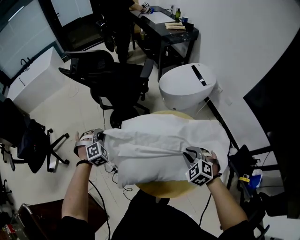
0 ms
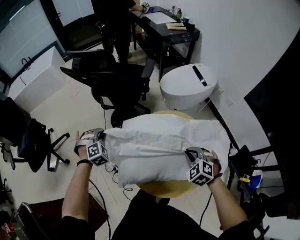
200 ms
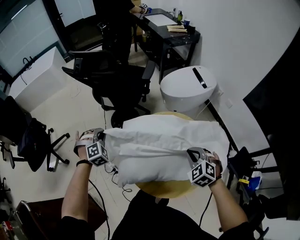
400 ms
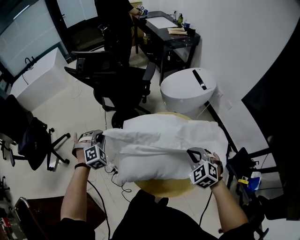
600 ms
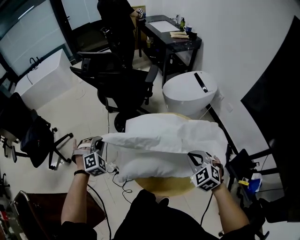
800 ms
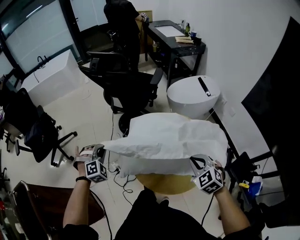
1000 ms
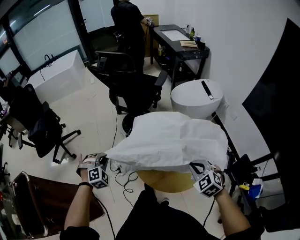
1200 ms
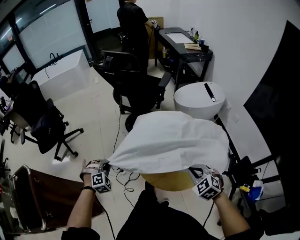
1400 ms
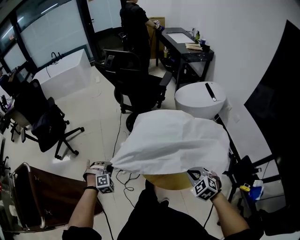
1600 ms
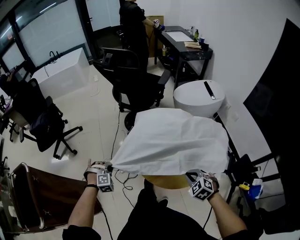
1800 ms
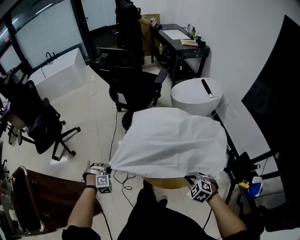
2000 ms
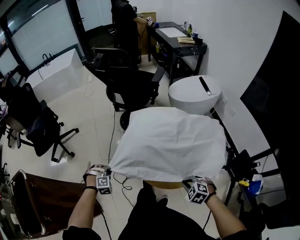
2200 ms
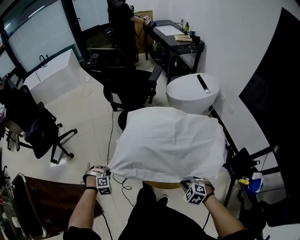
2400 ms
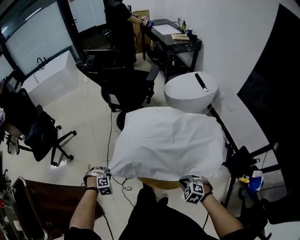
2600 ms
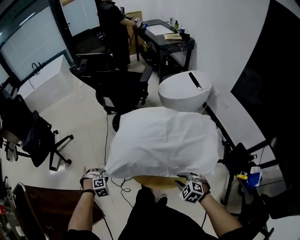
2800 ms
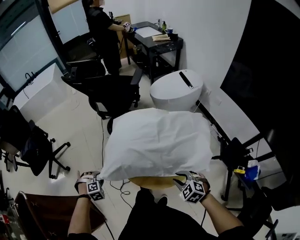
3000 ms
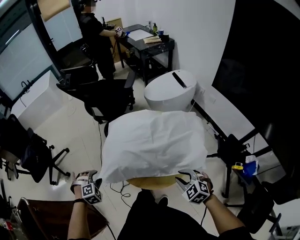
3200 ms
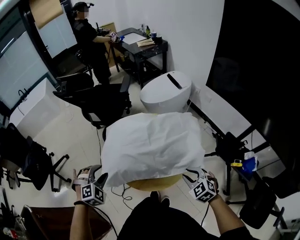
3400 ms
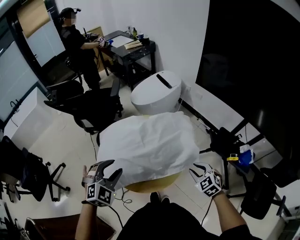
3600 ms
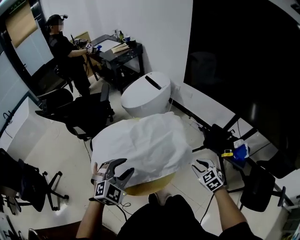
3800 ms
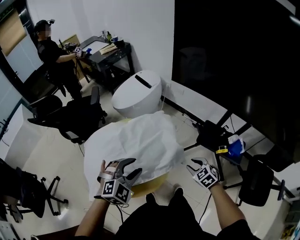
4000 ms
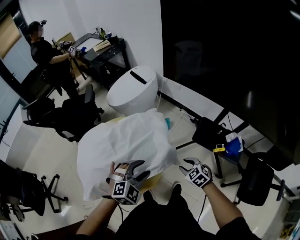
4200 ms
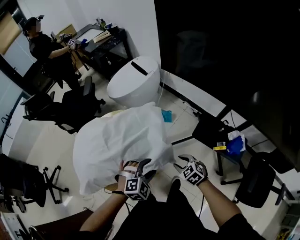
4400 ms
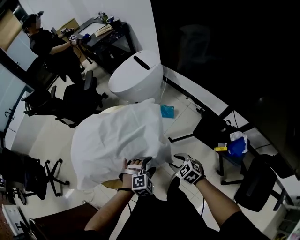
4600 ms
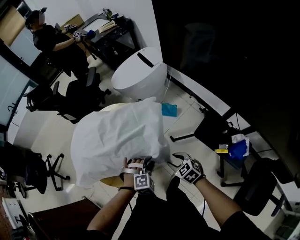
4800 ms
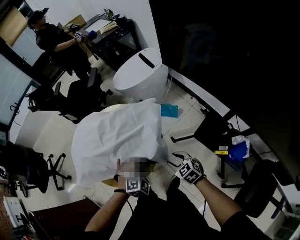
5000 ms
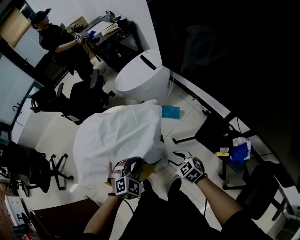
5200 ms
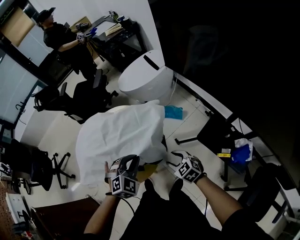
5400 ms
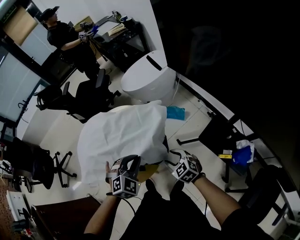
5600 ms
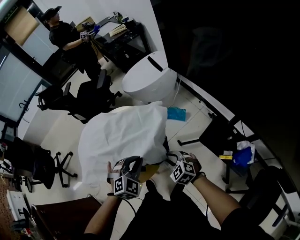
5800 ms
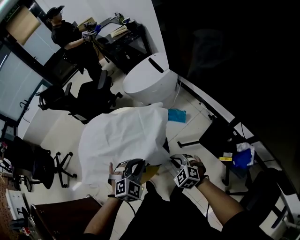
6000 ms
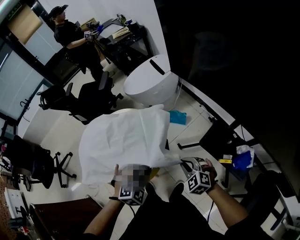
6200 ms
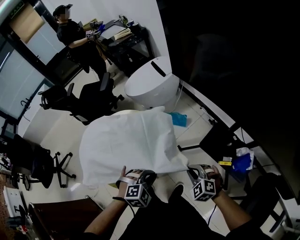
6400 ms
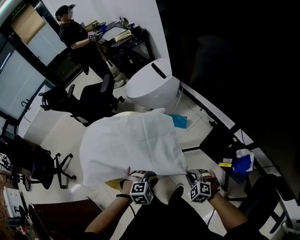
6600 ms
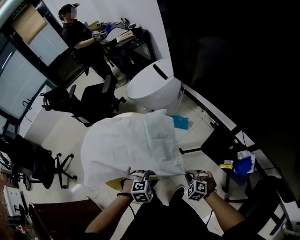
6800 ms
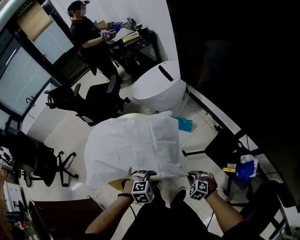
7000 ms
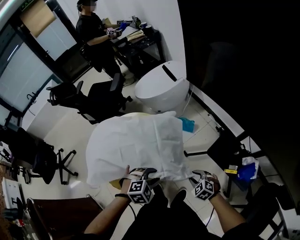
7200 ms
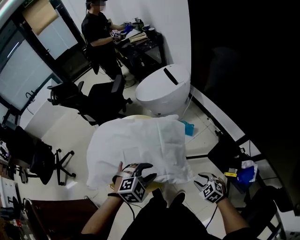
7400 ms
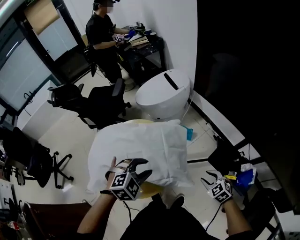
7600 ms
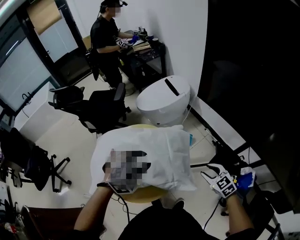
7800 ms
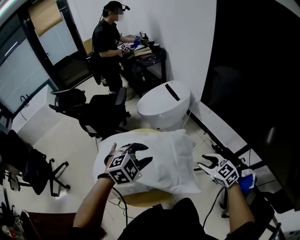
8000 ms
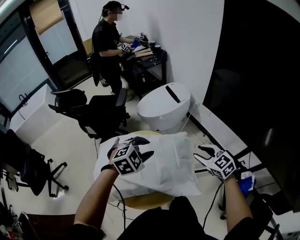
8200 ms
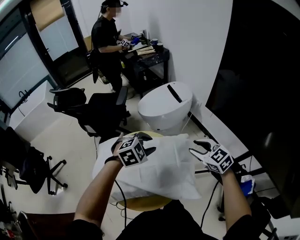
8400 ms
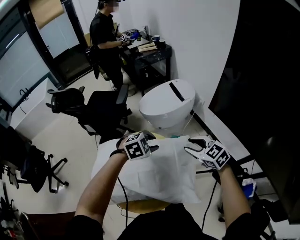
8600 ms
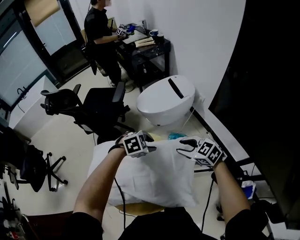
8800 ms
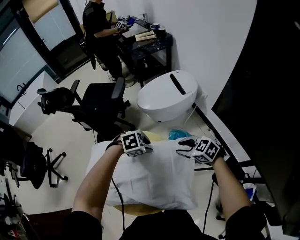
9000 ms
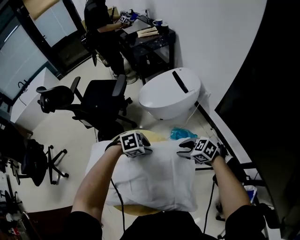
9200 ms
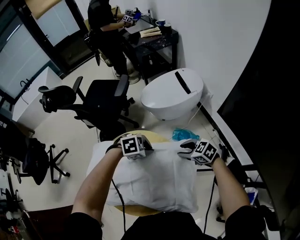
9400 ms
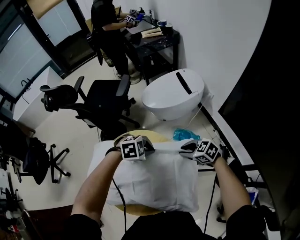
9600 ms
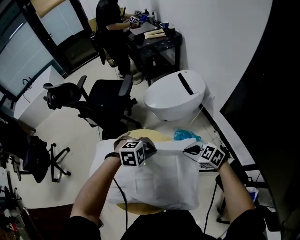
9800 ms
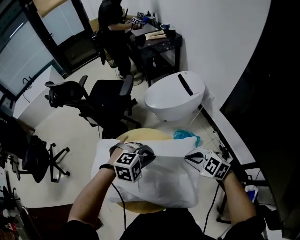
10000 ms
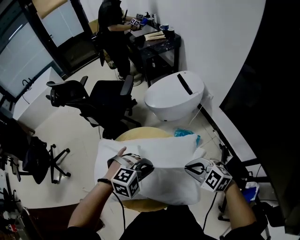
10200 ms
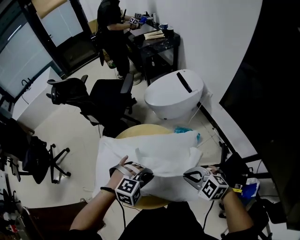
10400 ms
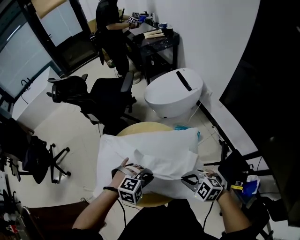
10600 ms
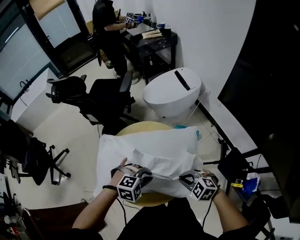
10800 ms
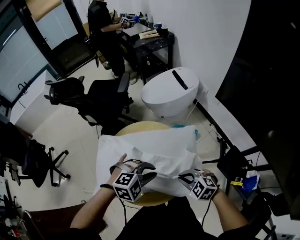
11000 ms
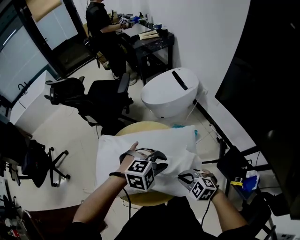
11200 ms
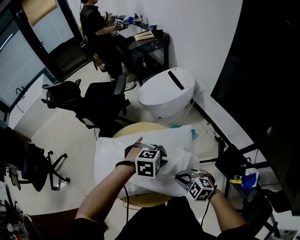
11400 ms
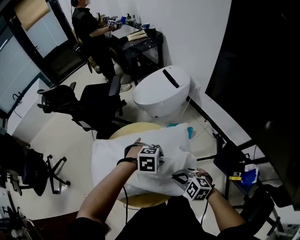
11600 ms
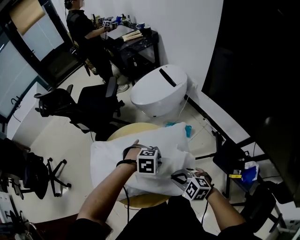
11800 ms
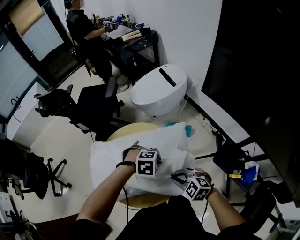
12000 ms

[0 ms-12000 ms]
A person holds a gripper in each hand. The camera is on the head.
0 ms to 1600 ms: The left gripper moves backward, approximately 30 cm; the right gripper heads backward, covering about 15 cm.
1600 ms to 3000 ms: The left gripper opens its fingers, while the right gripper opens.
3000 ms to 4400 ms: The right gripper ends up approximately 25 cm from where it was, and swivels about 30 degrees; the left gripper shifts by roughly 60 cm, and swivels approximately 40 degrees.
4400 ms to 6000 ms: The right gripper shifts by roughly 5 cm, turns by approximately 20 degrees, and closes. The left gripper shifts approximately 5 cm upward, rotates roughly 20 degrees, and closes.
6000 ms to 7600 ms: The left gripper goes approximately 5 cm to the left, moves some 10 cm downward and comes back, and opens. The right gripper goes approximately 10 cm to the right, moves roughly 10 cm downward and comes back, and opens up.
7600 ms to 9000 ms: The left gripper moves some 25 cm, and changes its angle by roughly 30 degrees; the right gripper moves approximately 15 cm upward and comes back, and rotates about 30 degrees.
9000 ms to 10400 ms: The left gripper ends up about 20 cm from where it was, swivels some 30 degrees, and closes its fingers. The right gripper shifts by roughly 20 cm, changes its angle by some 20 degrees, and closes up.
10400 ms to 12000 ms: The left gripper ends up about 10 cm from where it was, and swivels approximately 20 degrees. Meanwhile the right gripper heads downward, covering some 5 cm.

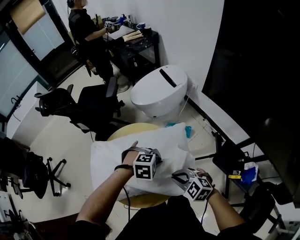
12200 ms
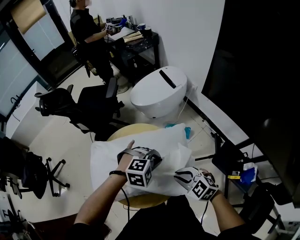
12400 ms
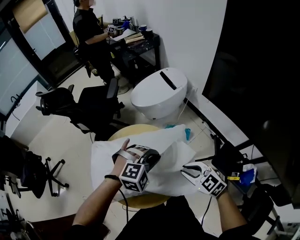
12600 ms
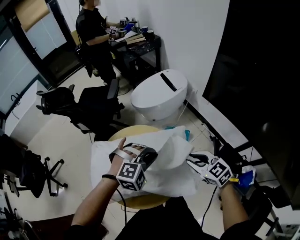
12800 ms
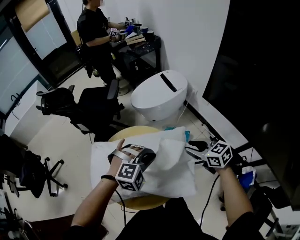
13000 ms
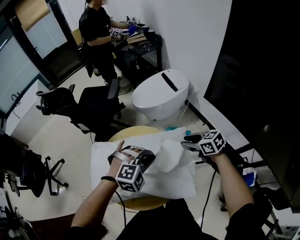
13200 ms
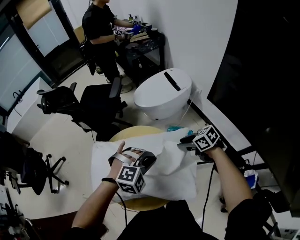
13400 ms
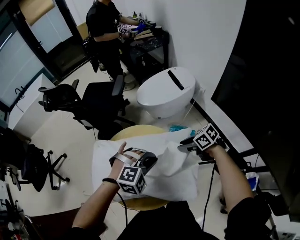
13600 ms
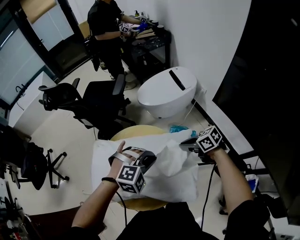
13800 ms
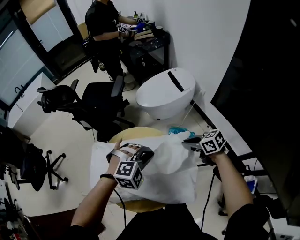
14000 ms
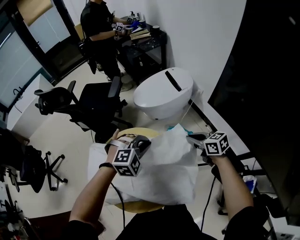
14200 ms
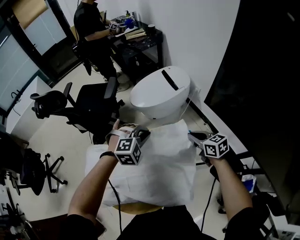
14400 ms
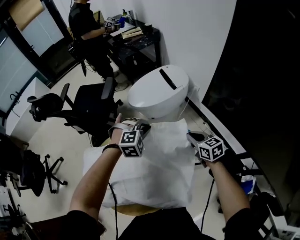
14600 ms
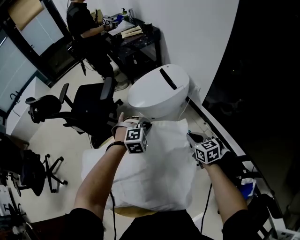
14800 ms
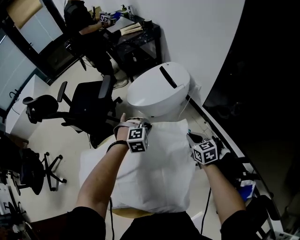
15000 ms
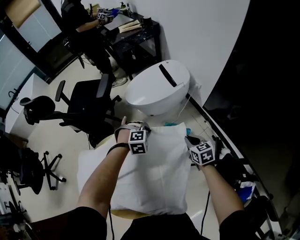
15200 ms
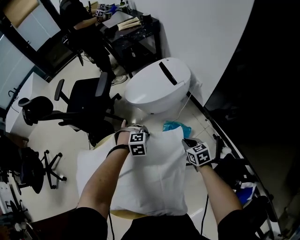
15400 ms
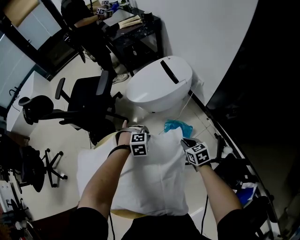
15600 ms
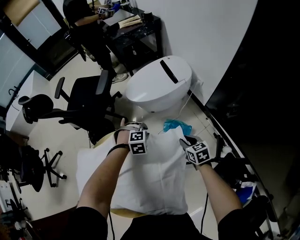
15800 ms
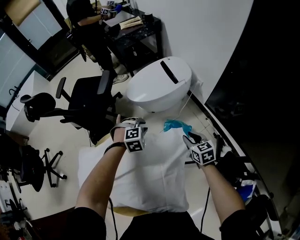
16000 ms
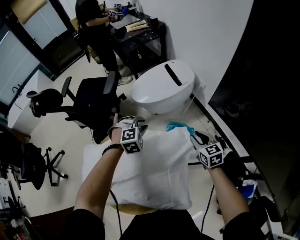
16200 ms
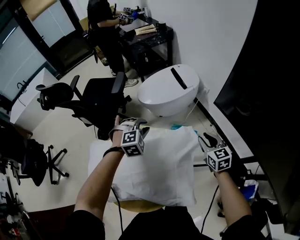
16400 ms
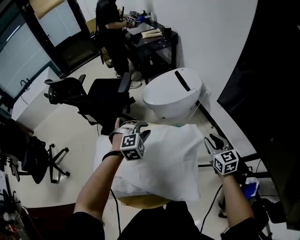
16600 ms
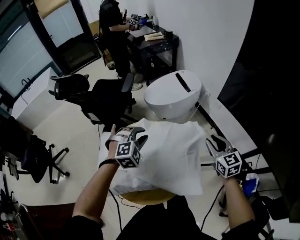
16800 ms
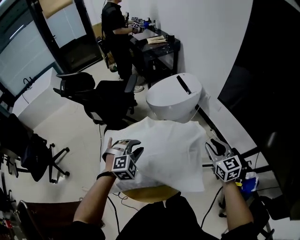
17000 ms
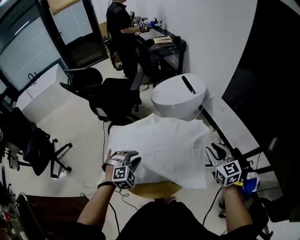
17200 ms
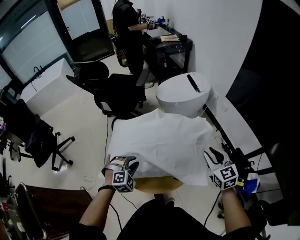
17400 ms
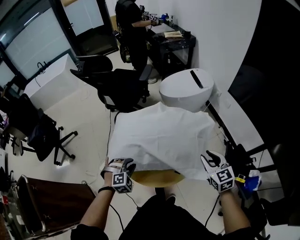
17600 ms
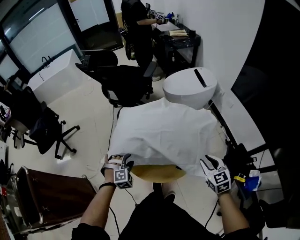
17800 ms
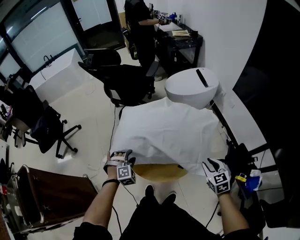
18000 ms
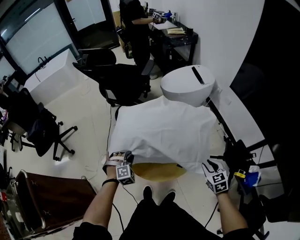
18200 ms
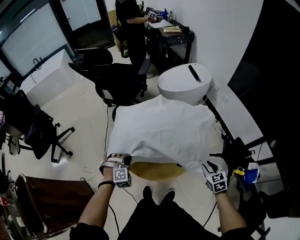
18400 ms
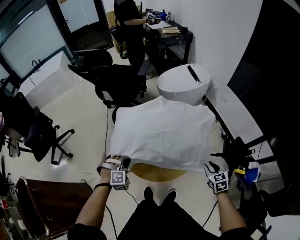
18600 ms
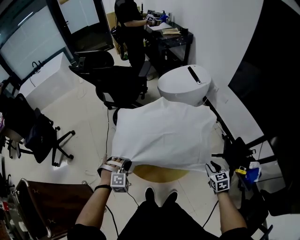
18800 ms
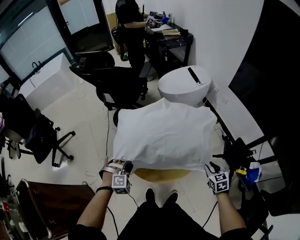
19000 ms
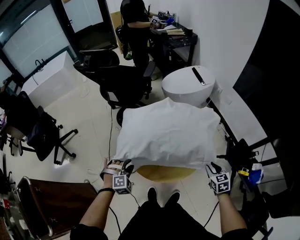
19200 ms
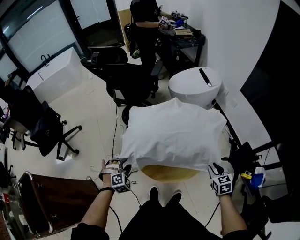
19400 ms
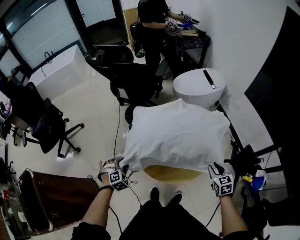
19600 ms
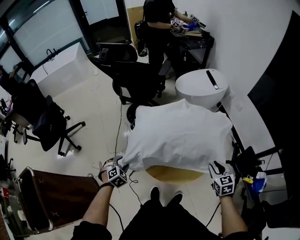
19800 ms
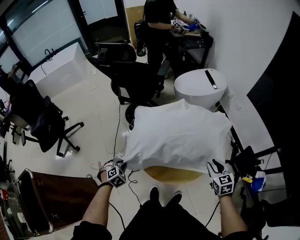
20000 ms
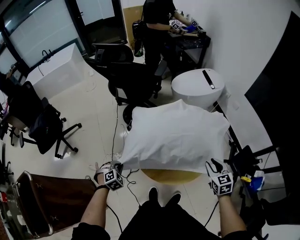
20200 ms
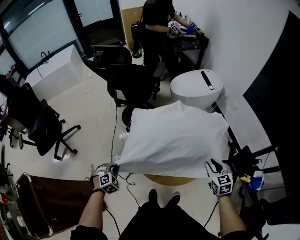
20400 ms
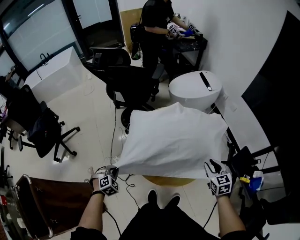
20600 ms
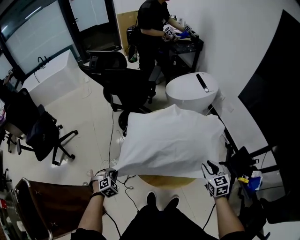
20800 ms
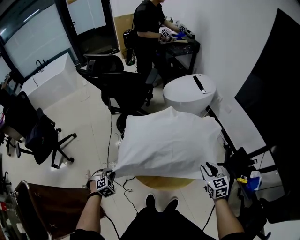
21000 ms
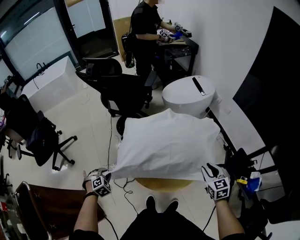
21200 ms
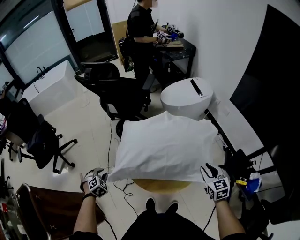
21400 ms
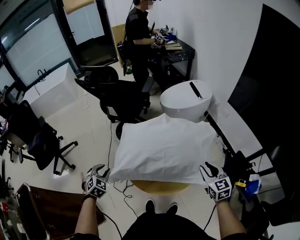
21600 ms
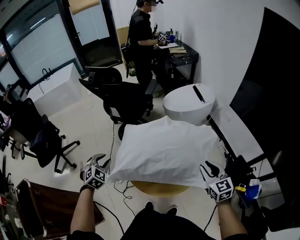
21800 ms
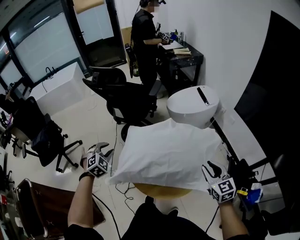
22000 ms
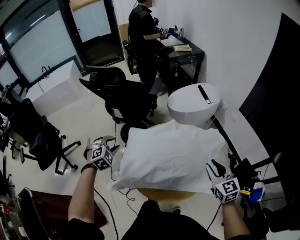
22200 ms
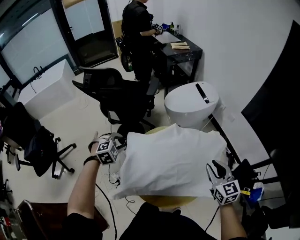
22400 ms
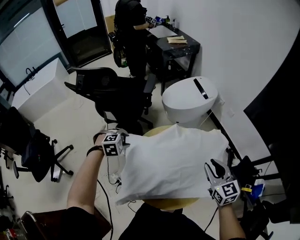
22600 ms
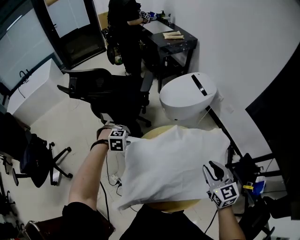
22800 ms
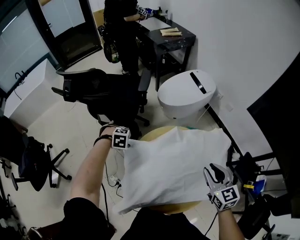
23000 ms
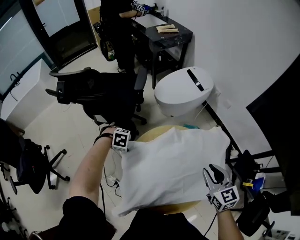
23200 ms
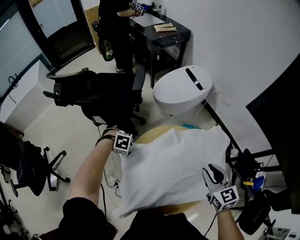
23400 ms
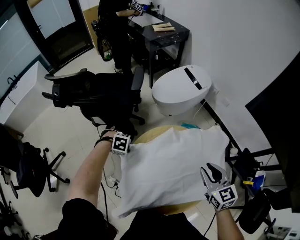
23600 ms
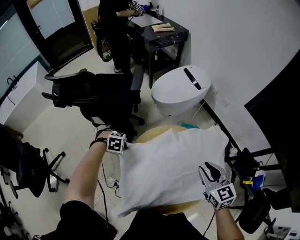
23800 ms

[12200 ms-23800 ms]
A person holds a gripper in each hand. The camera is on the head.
12200 ms to 13600 ms: The right gripper travels upward and back again, some 5 cm each way, rolls clockwise, seen from behind, by about 40 degrees, and opens. Meanwhile the left gripper travels upward by some 5 cm, and rotates approximately 20 degrees.
13600 ms to 15000 ms: The right gripper ends up approximately 20 cm from where it was, changes its angle by roughly 50 degrees, and closes its fingers. Meanwhile the left gripper changes place by roughly 25 cm.
15000 ms to 16600 ms: The right gripper heads upward and backward, covering some 15 cm, and opens up; the left gripper heads backward, to the left and upward, covering approximately 20 cm.
16600 ms to 18000 ms: The grippers both shift backward and to the left by approximately 30 cm. The left gripper changes its angle by about 20 degrees, and opens up.
18000 ms to 19400 ms: The left gripper is displaced to the left by some 10 cm, and closes, then reopens.
19400 ms to 21000 ms: The left gripper is displaced to the left by some 10 cm, and closes, while the right gripper is displaced upward by about 5 cm.
21000 ms to 22400 ms: The right gripper moves forward and upward, roughly 15 cm; the left gripper heads forward and upward, covering roughly 30 cm, turns by roughly 20 degrees, and opens.
22400 ms to 23800 ms: The left gripper moves downward, roughly 15 cm, rotates about 50 degrees, and closes its fingers. Meanwhile the right gripper moves some 10 cm.
